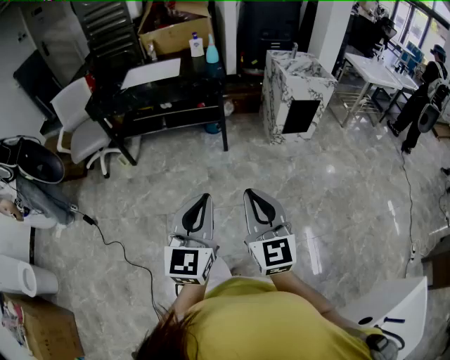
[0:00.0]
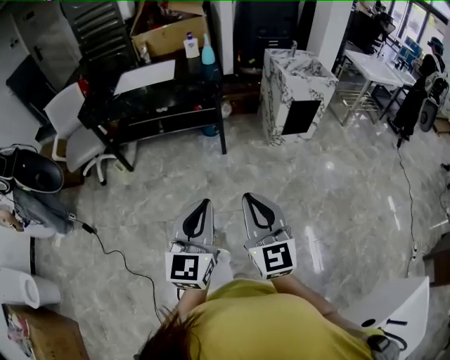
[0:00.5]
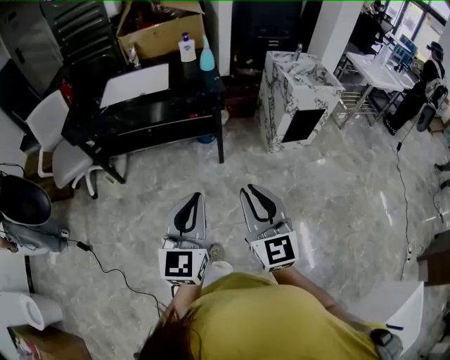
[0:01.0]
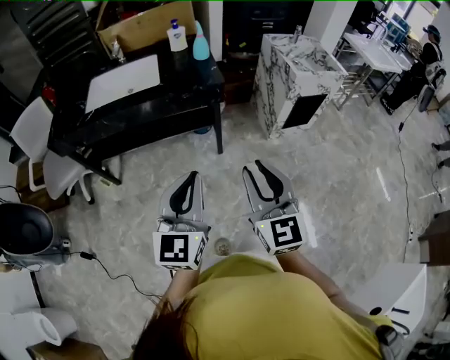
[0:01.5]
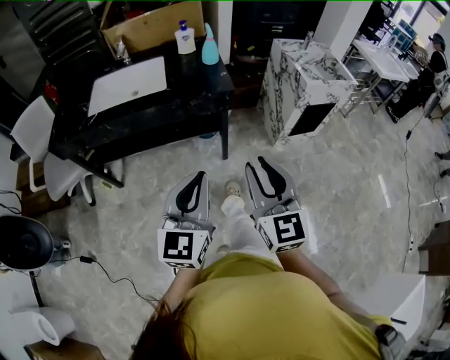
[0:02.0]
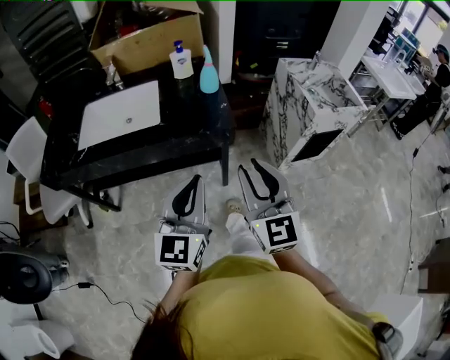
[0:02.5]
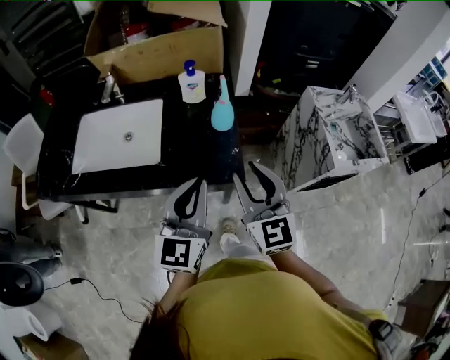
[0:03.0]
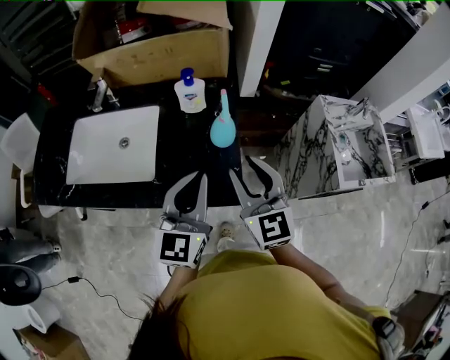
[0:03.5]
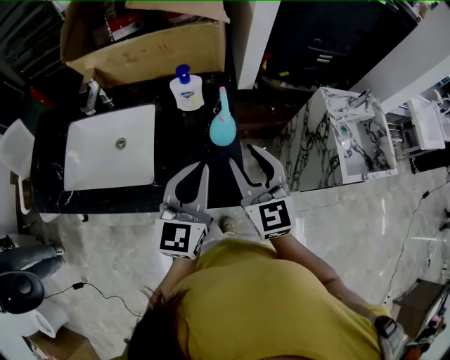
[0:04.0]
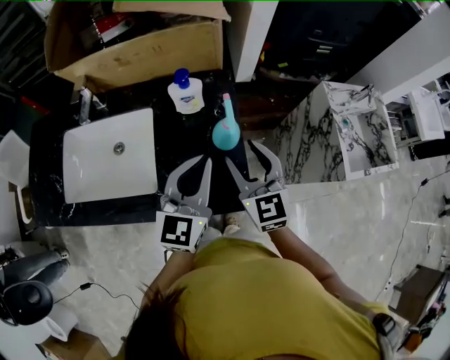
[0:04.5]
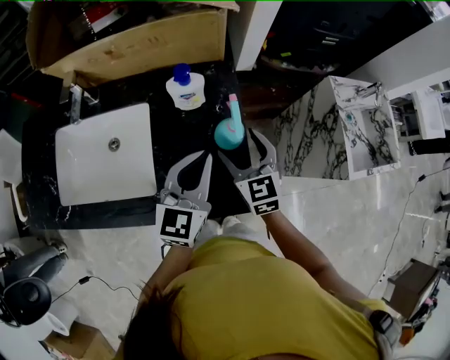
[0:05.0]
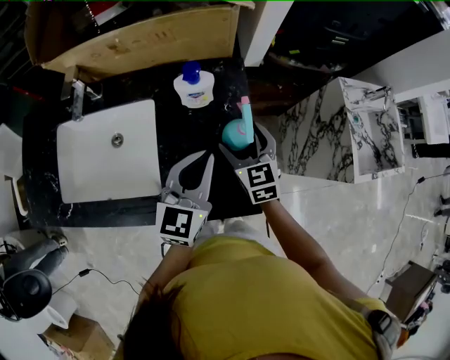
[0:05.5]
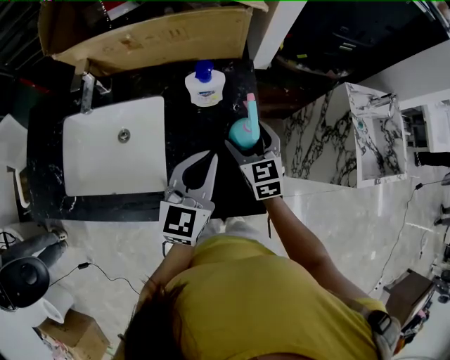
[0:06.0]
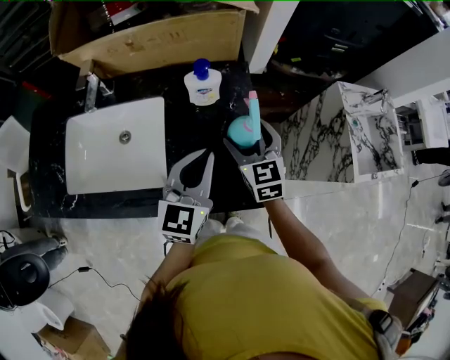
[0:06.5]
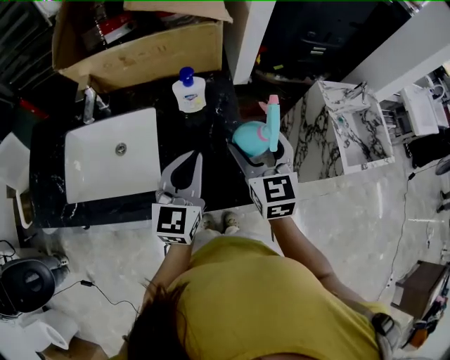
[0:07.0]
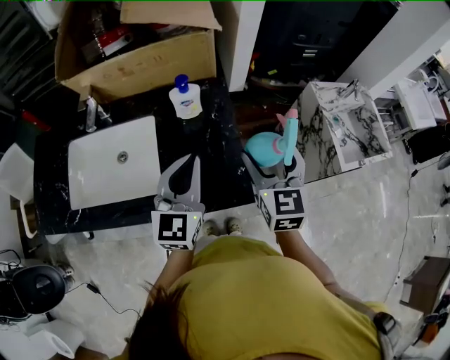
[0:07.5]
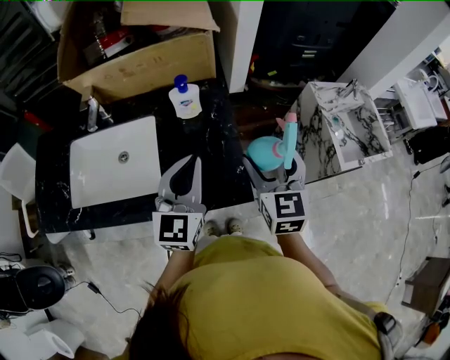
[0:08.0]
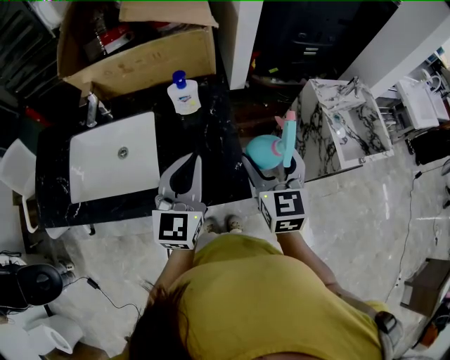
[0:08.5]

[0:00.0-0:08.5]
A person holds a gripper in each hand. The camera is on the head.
0:00.0 to 0:02.0: The two grippers travel together, forward, approximately 40 cm.
0:02.0 to 0:04.0: The two grippers travel together, forward, roughly 50 cm.
0:04.0 to 0:06.5: The right gripper heads forward and downward, covering approximately 15 cm, and opens its fingers, while the left gripper heads forward and downward, covering about 10 cm.
0:06.5 to 0:08.5: The left gripper goes roughly 10 cm upward and backward; the right gripper shifts about 20 cm upward, to the right and backward.

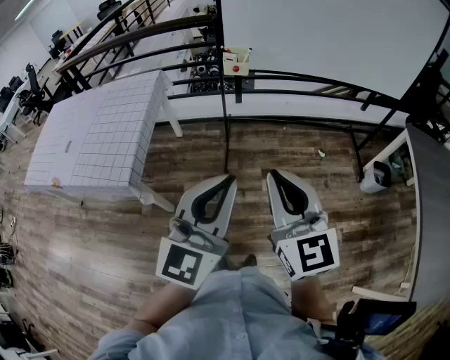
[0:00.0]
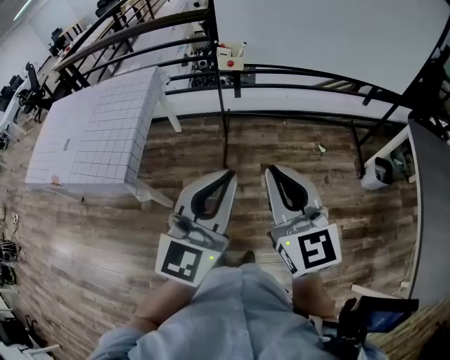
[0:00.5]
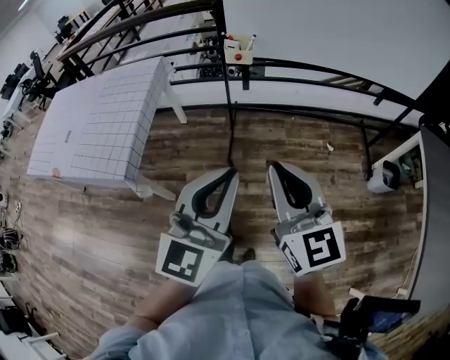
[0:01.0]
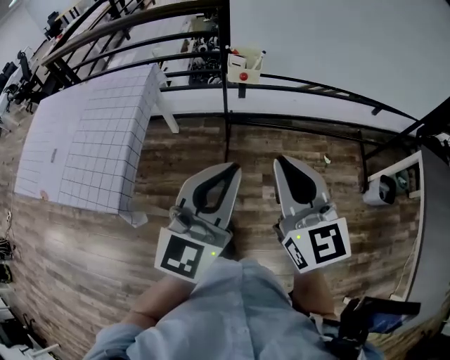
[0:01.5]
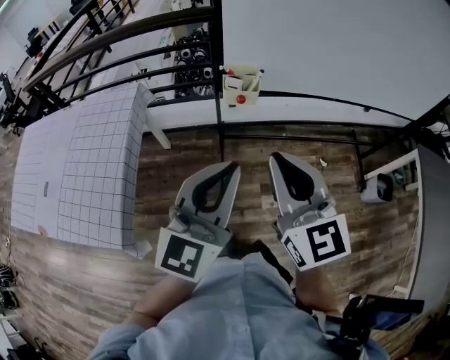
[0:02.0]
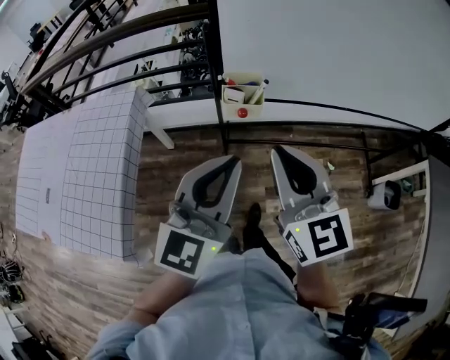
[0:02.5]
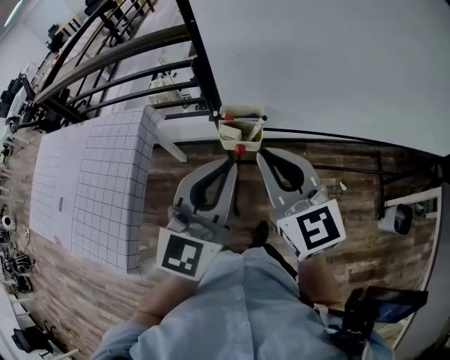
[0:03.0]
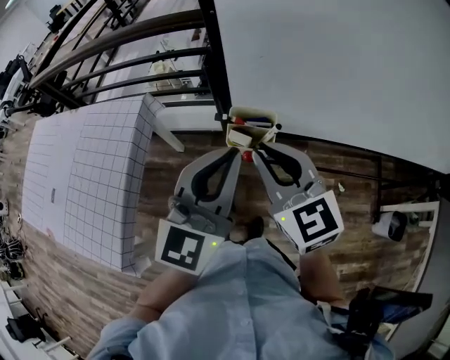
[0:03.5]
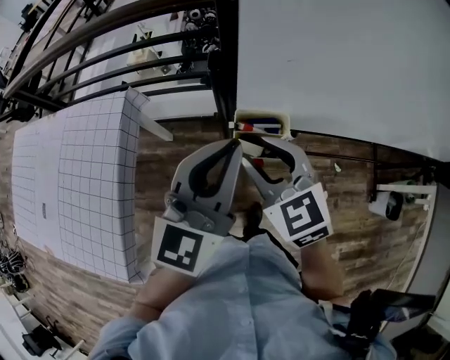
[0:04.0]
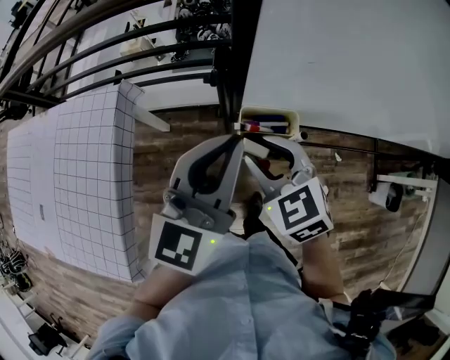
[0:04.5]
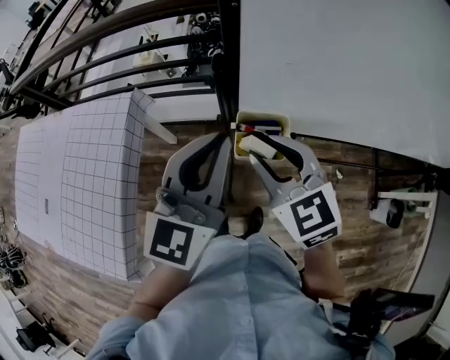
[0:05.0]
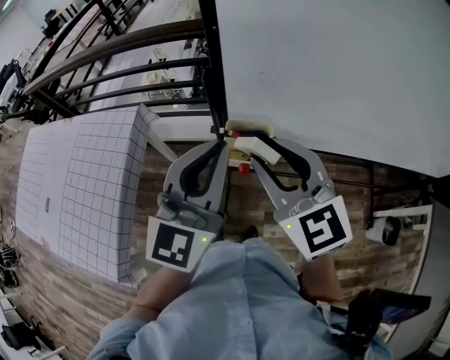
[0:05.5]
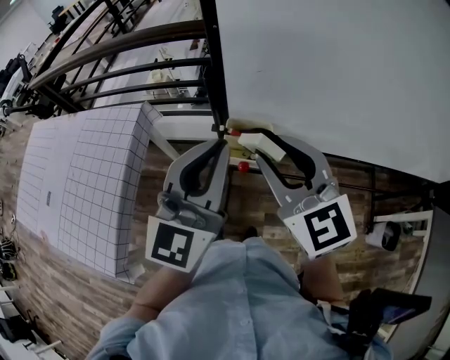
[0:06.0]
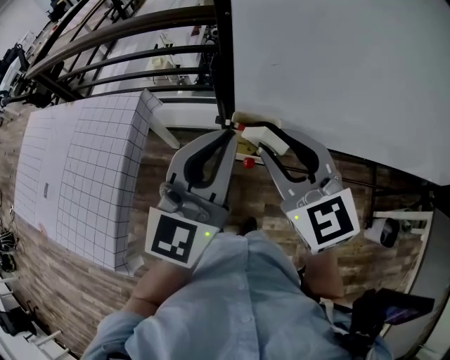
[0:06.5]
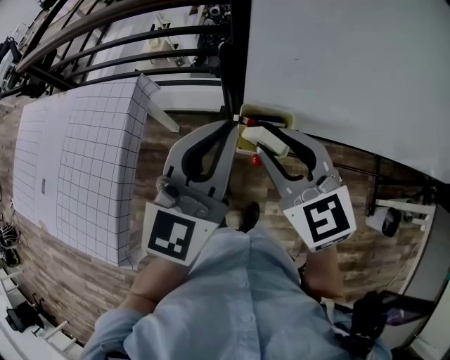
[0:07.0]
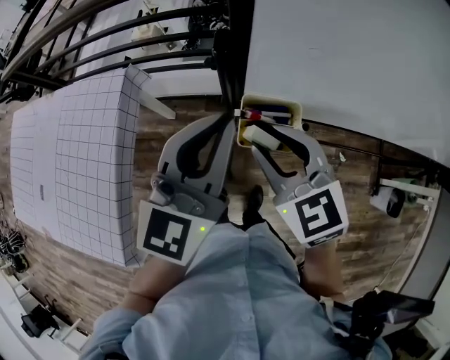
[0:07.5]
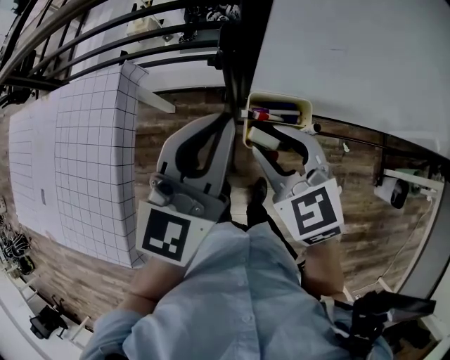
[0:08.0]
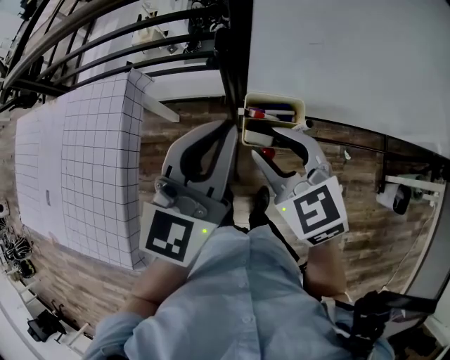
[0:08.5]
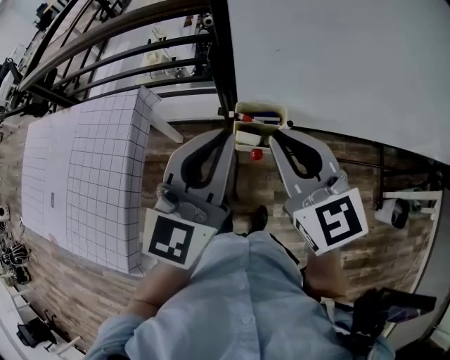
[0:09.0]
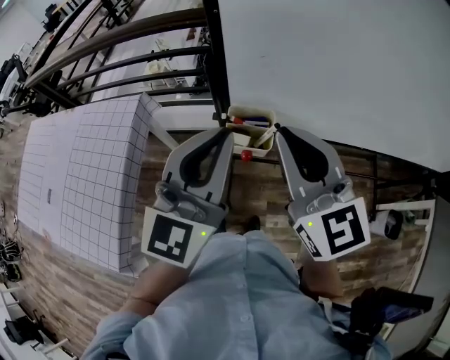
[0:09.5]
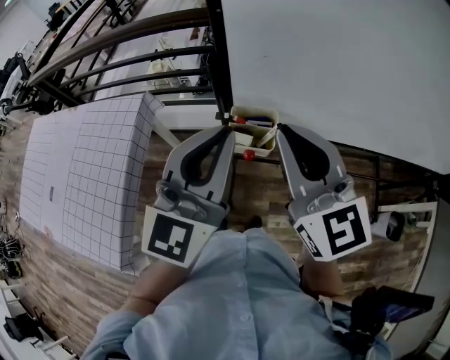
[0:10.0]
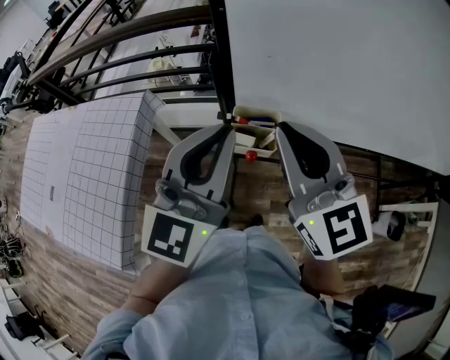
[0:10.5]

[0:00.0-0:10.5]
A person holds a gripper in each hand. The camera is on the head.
0:00.0 to 0:02.0: The two grippers go about 30 cm forward.
0:02.0 to 0:04.0: The left gripper heads forward, covering approximately 30 cm. The right gripper moves forward and downward, some 30 cm, turns by approximately 30 degrees, and opens up.
0:04.0 to 0:06.5: The right gripper is displaced upward by roughly 10 cm. The left gripper ends up about 5 cm from where it was.
0:06.5 to 0:08.5: The left gripper shifts about 5 cm downward; the right gripper shifts about 10 cm downward.
0:08.5 to 0:10.5: The left gripper shifts about 10 cm upward and backward, while the right gripper goes roughly 15 cm upward, tilts its fingers some 30 degrees upward, and closes up.

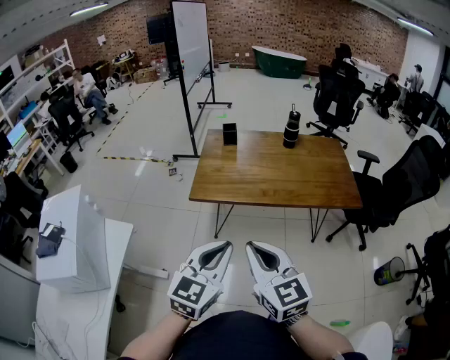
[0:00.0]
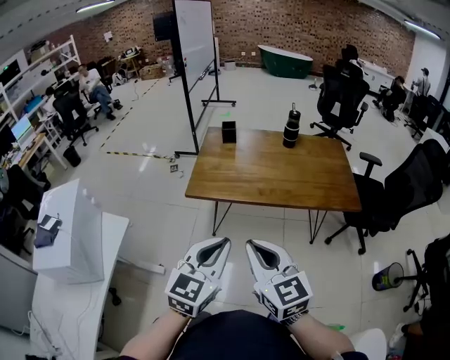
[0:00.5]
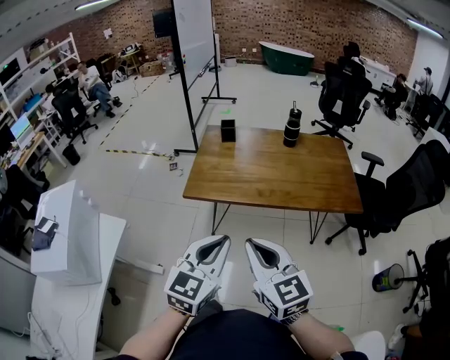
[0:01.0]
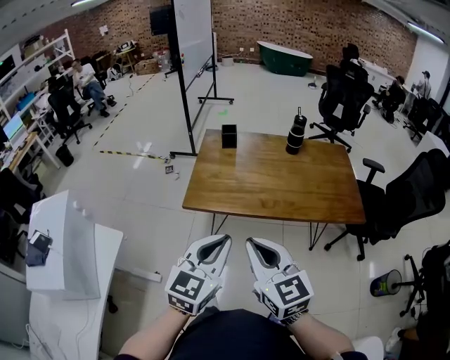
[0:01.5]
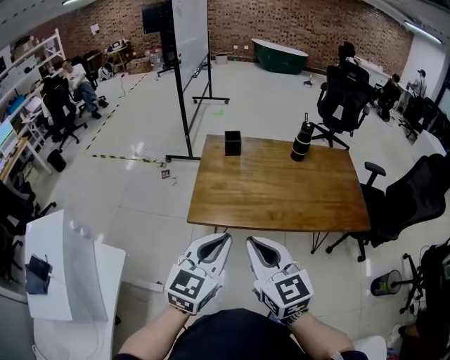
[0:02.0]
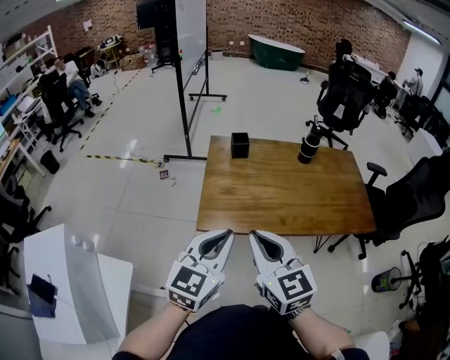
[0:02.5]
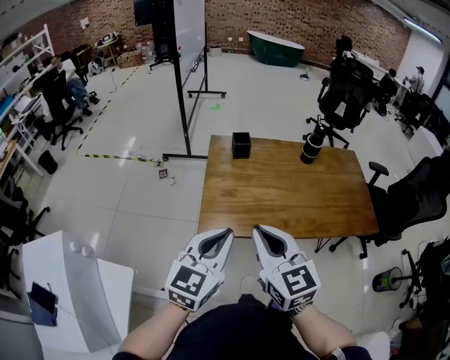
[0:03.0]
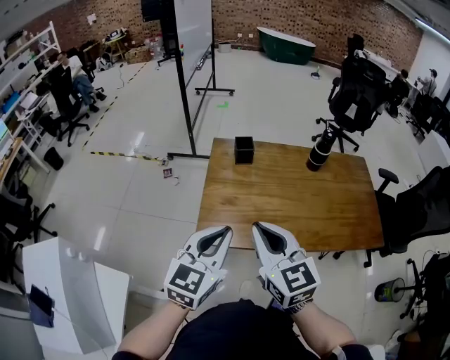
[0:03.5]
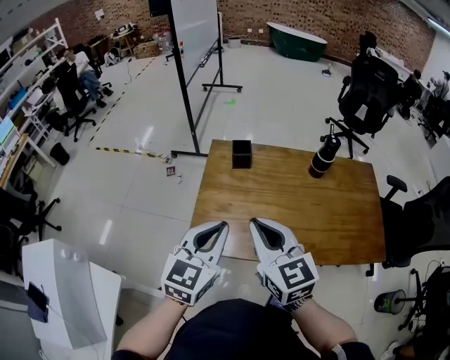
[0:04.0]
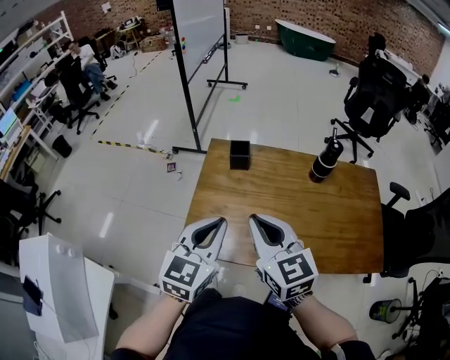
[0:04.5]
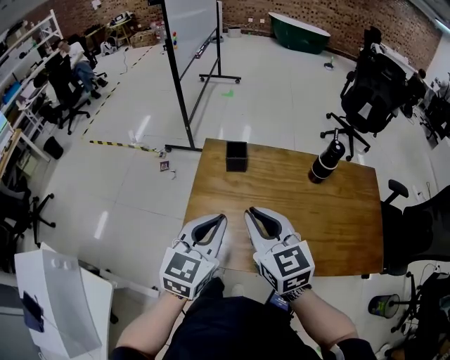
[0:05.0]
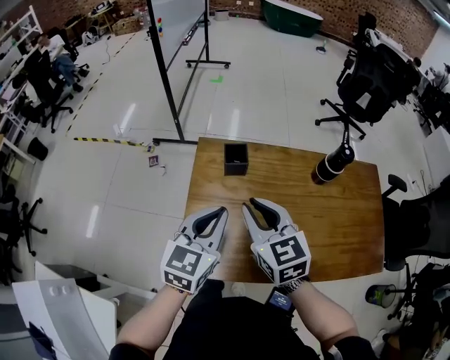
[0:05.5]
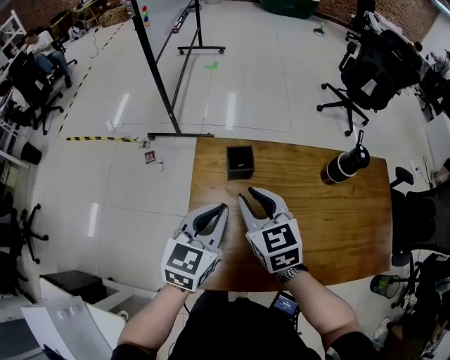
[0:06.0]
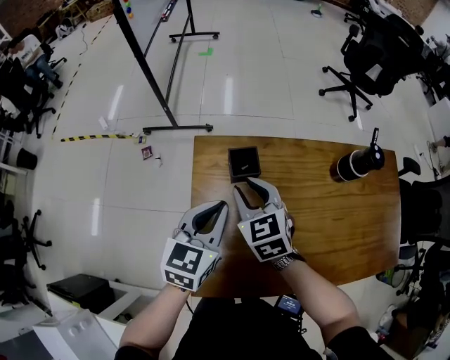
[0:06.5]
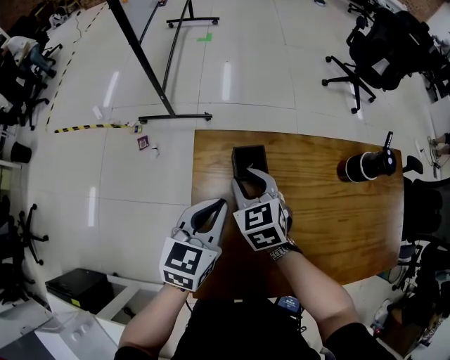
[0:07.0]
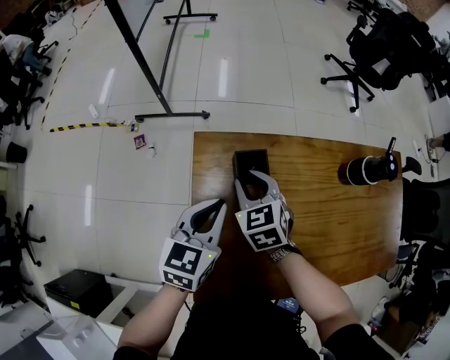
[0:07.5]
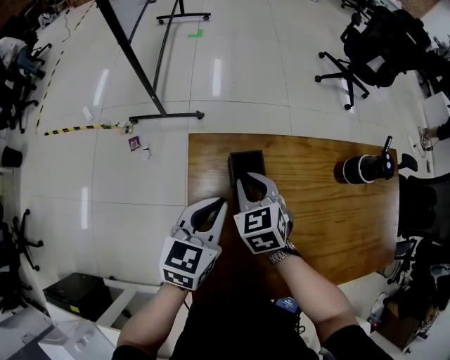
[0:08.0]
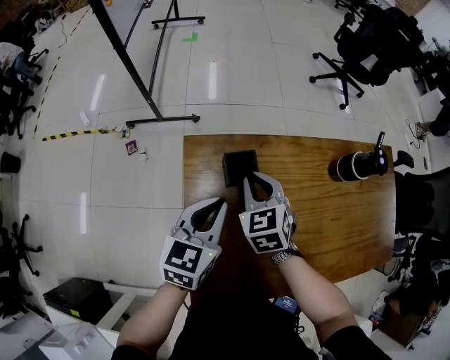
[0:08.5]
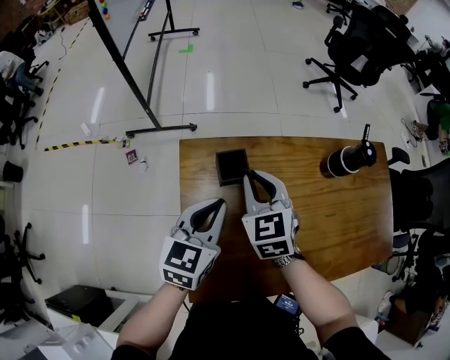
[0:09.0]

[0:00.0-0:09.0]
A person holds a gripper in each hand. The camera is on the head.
0:00.0 to 0:02.0: The grippers both shift forward by some 20 cm.
0:02.0 to 0:04.5: The grippers both shift forward by about 25 cm.
0:04.5 to 0:07.0: The grippers both shift forward and downward by approximately 40 cm. The right gripper changes its angle by approximately 30 degrees, and opens up.
0:07.0 to 0:09.0: The right gripper moves upward and to the right, approximately 10 cm.
